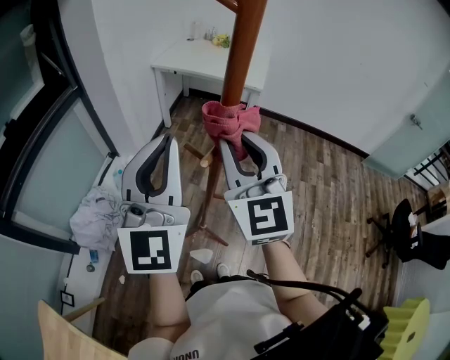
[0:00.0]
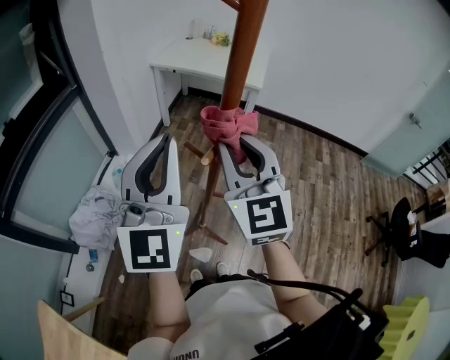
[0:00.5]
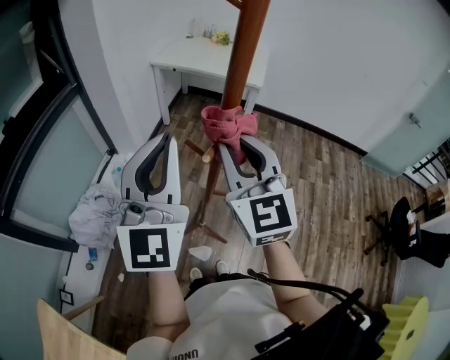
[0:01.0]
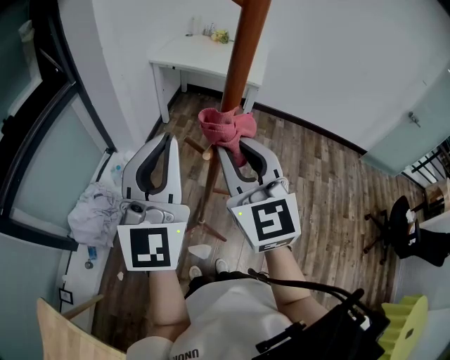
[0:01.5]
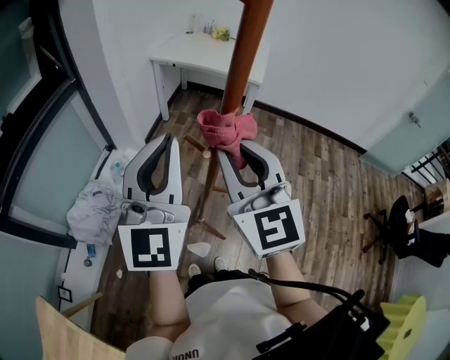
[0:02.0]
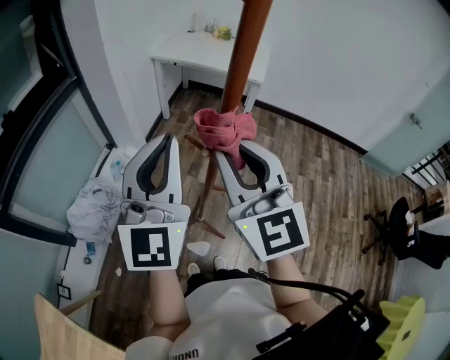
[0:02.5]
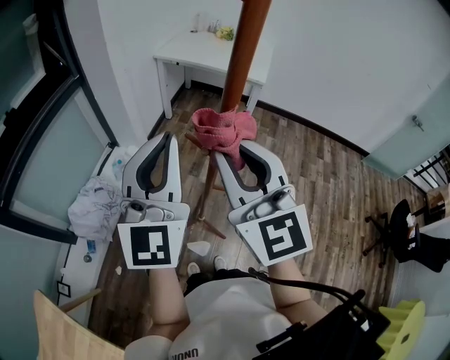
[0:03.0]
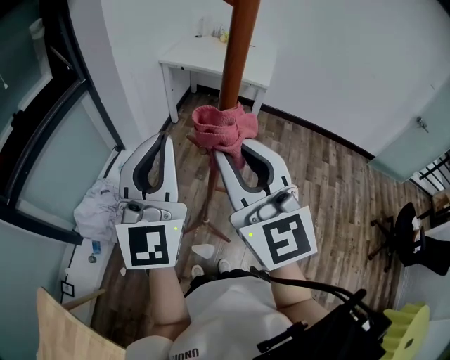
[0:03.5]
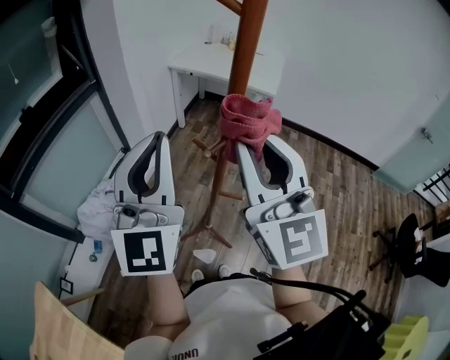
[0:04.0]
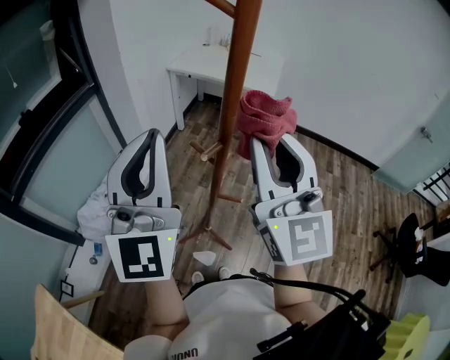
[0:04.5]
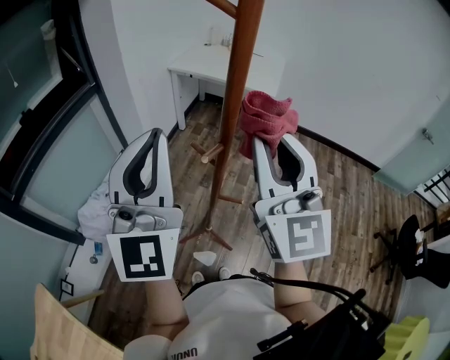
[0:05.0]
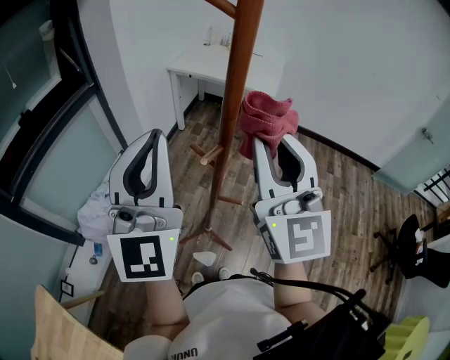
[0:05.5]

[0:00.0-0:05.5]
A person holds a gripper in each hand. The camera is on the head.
0:00.0 to 0:02.0: The grippers make only small movements.
0:02.0 to 0:03.5: The right gripper shifts by approximately 5 cm.
0:03.5 to 0:05.5: The right gripper is displaced to the right by some 5 cm.

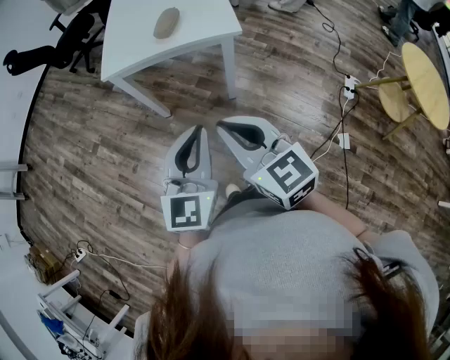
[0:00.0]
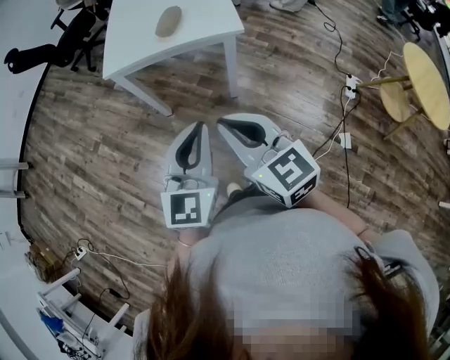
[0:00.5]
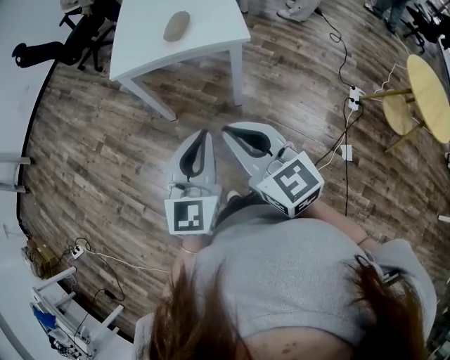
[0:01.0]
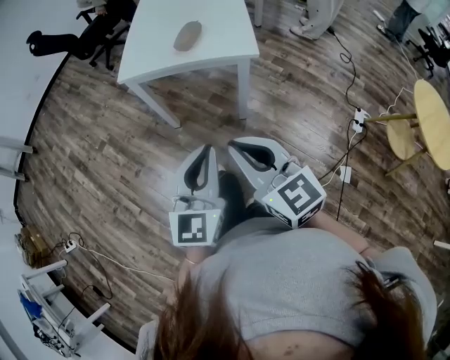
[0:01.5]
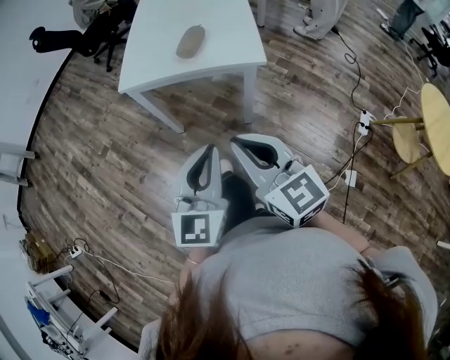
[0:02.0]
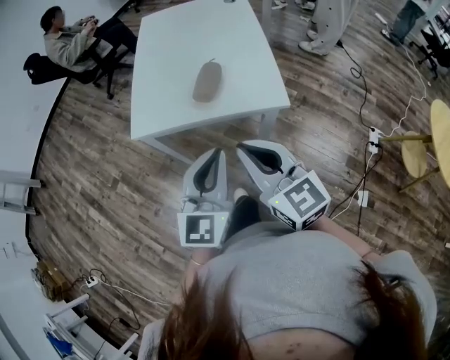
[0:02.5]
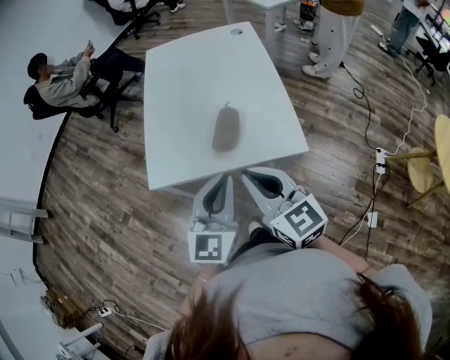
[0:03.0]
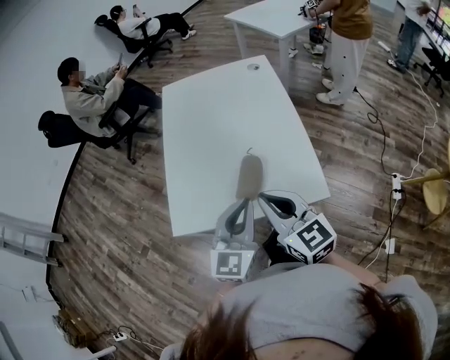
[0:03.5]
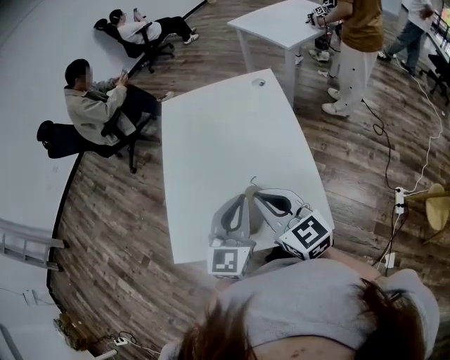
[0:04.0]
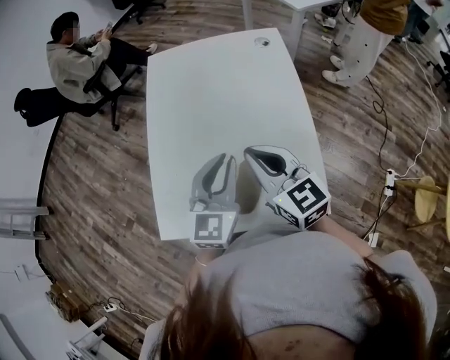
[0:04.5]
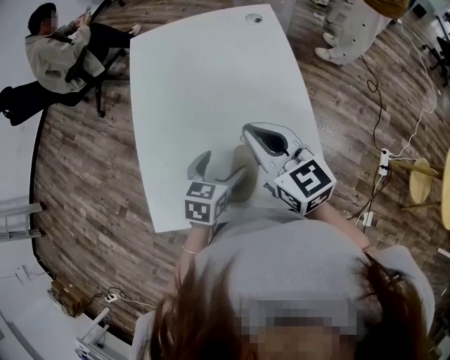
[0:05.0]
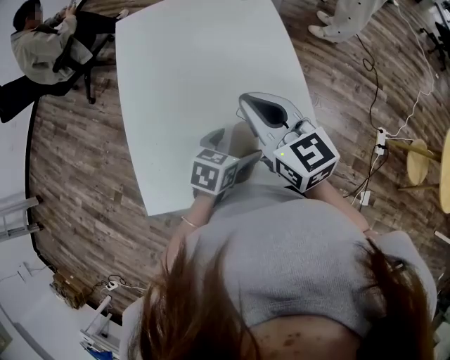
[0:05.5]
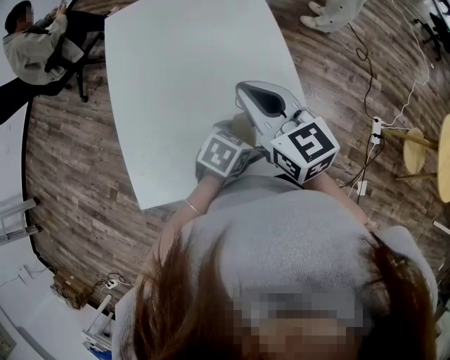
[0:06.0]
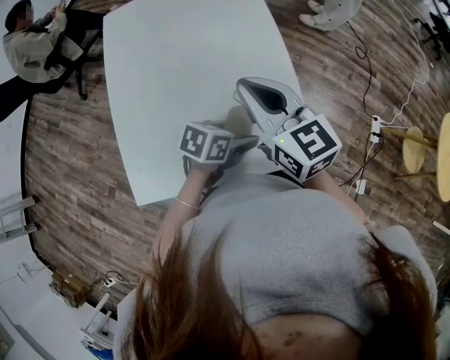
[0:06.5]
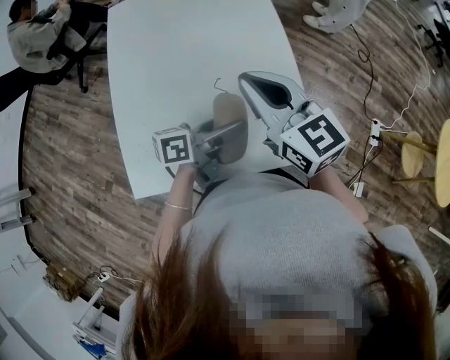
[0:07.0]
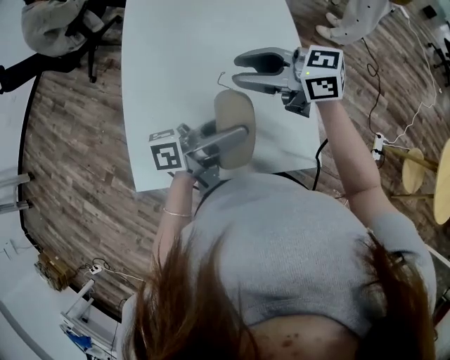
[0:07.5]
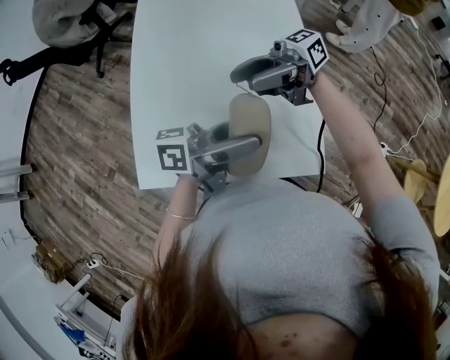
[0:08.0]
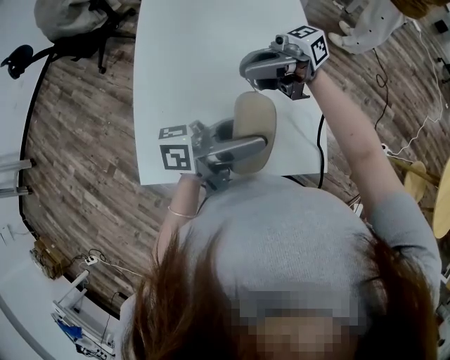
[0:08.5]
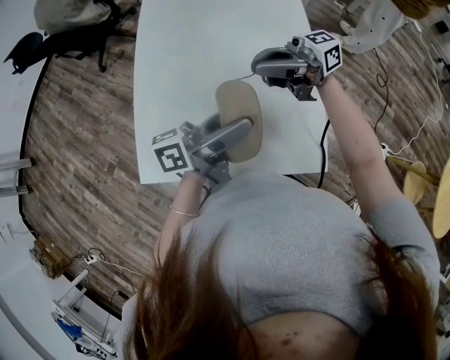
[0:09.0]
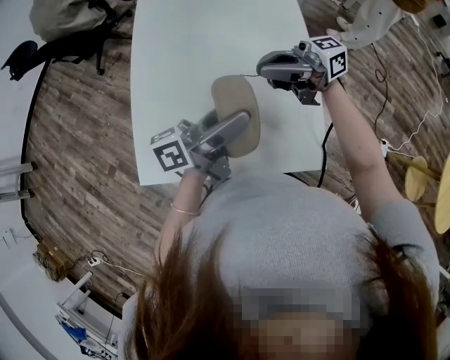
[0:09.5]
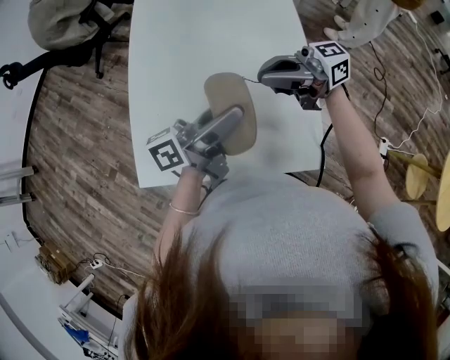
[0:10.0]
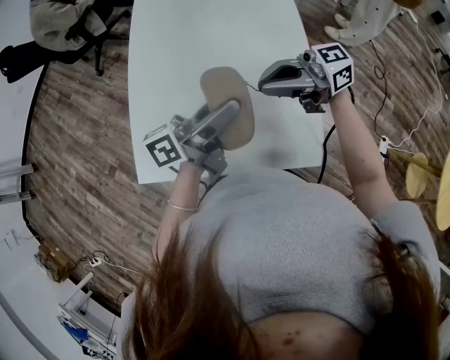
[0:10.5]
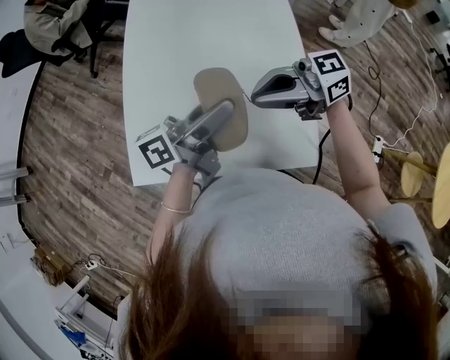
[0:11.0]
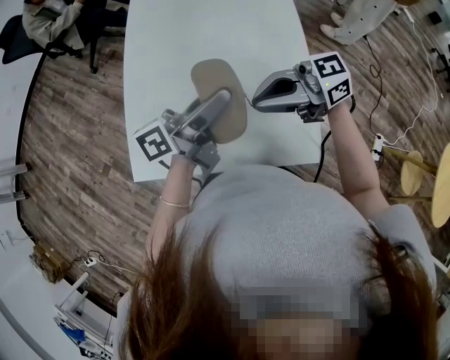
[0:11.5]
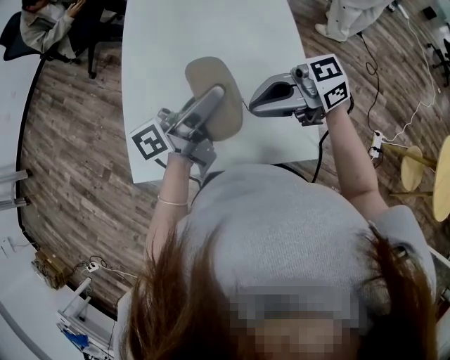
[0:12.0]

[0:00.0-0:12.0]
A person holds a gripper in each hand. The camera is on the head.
0:00.0 to 0:02.0: The right gripper goes roughly 5 cm forward.
0:02.0 to 0:04.0: The pair of grippers is taken forward, roughly 40 cm.
0:04.0 to 0:06.0: The right gripper changes place by approximately 10 cm; the left gripper travels downward by approximately 20 cm, tilts its fingers roughly 40 degrees downward, and opens up.
0:06.0 to 0:08.0: The right gripper points its fingers approximately 40 degrees further upward, and opens its fingers. Meanwhile the left gripper heads upward, covering about 20 cm, and points its fingers some 60 degrees further upward.
0:08.0 to 0:10.0: The left gripper ends up roughly 5 cm from where it was; the right gripper closes its fingers.
0:10.0 to 0:12.0: The right gripper shifts by roughly 10 cm.

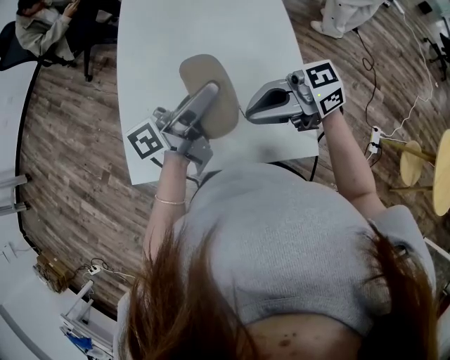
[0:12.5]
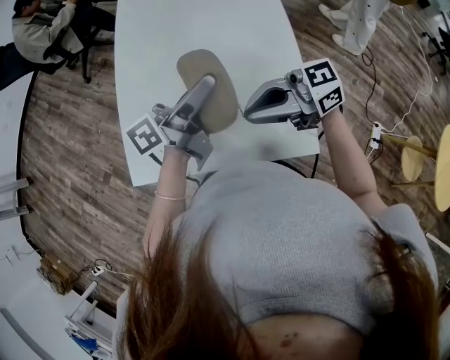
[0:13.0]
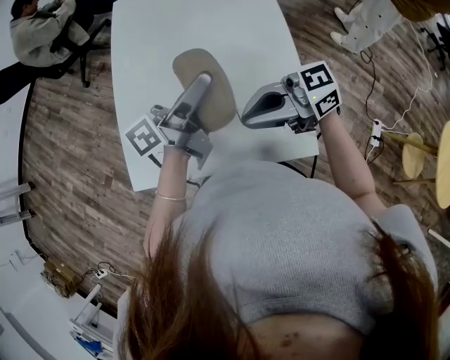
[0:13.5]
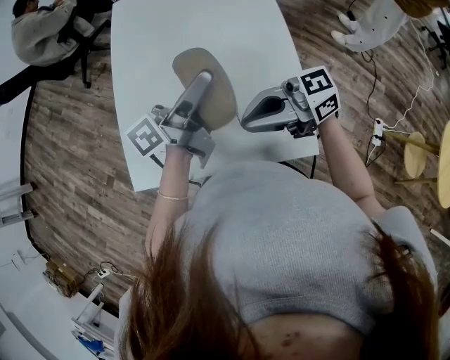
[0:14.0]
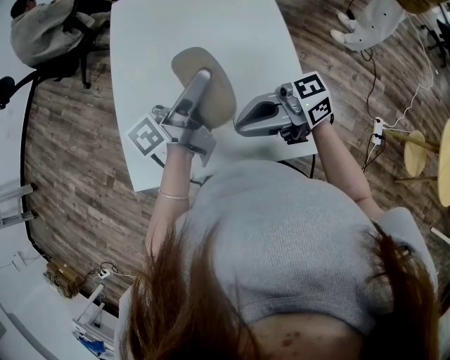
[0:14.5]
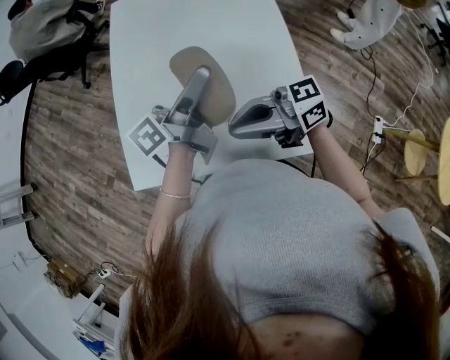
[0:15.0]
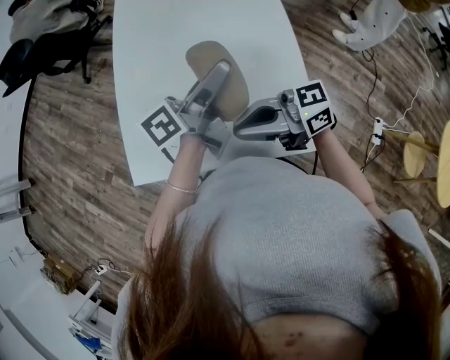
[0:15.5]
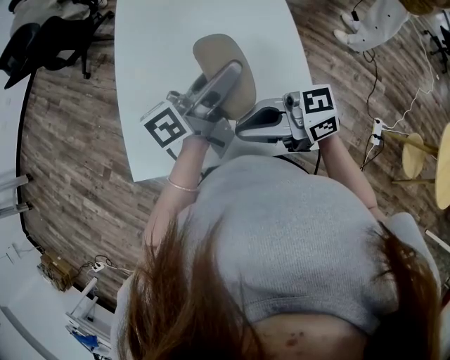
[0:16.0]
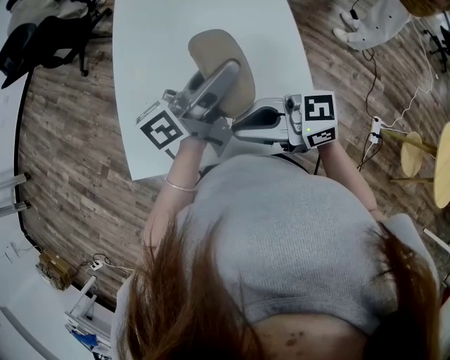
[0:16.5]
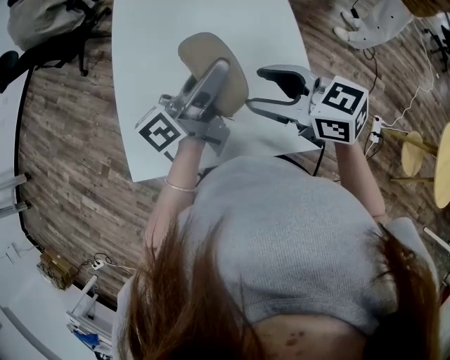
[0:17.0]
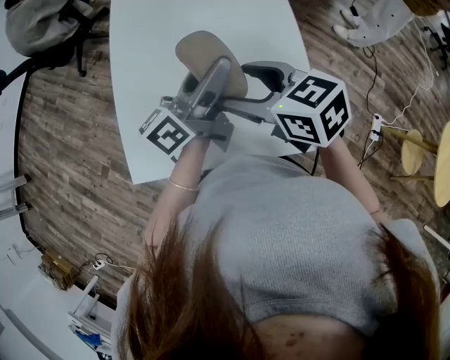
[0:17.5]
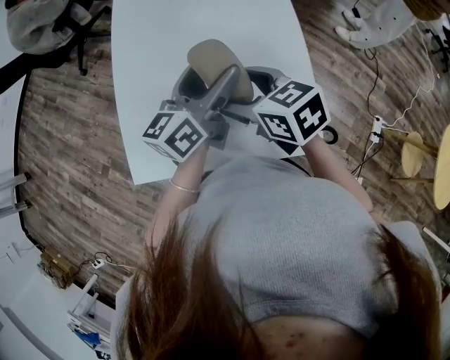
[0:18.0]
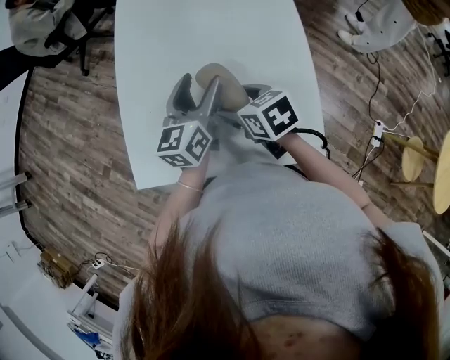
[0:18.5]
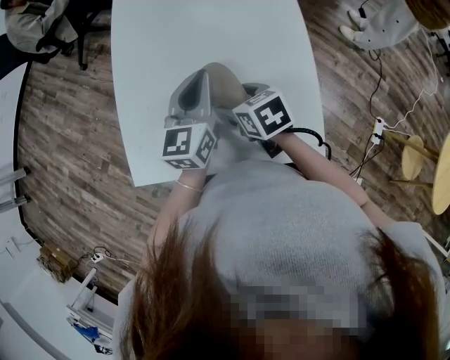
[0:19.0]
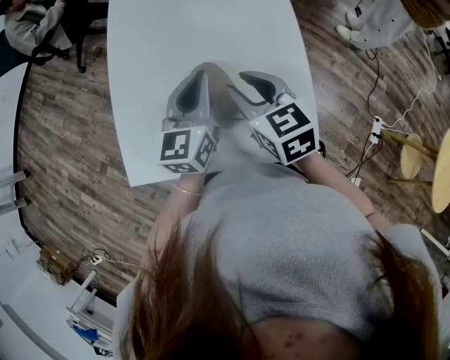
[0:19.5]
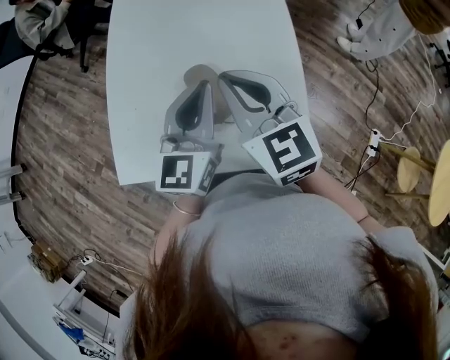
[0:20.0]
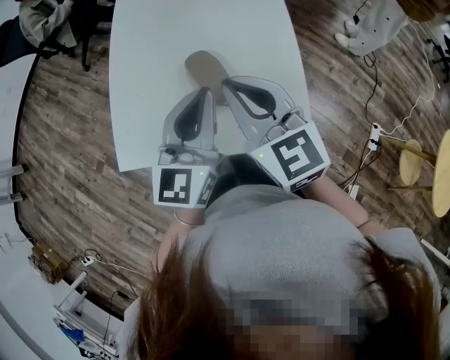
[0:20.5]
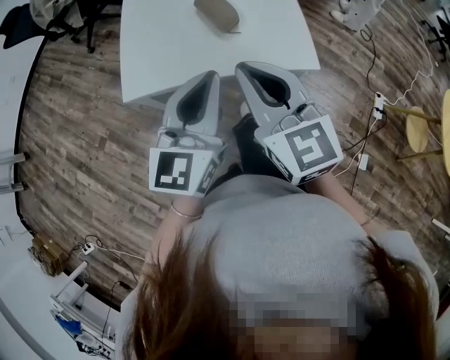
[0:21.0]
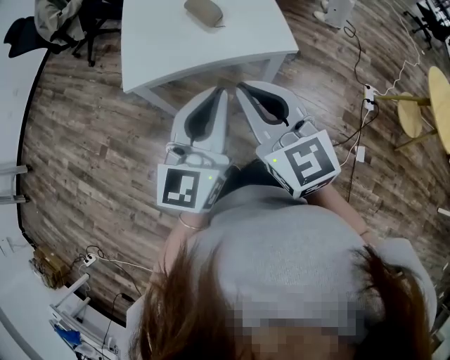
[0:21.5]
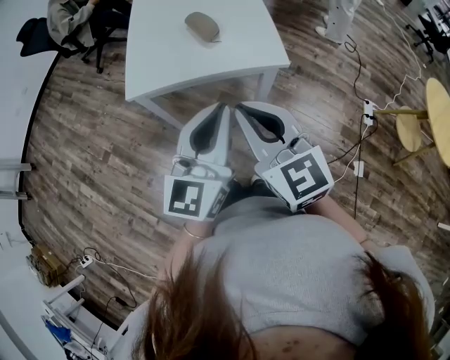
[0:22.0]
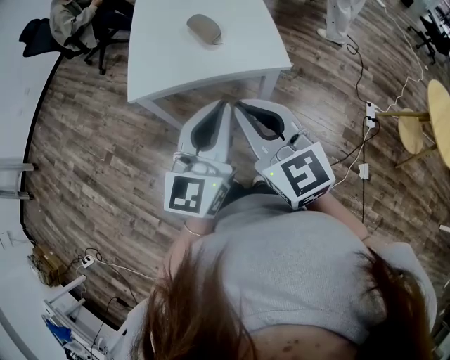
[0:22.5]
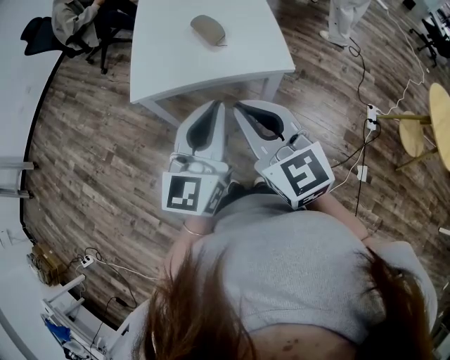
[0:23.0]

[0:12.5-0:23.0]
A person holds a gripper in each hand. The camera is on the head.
0:12.5 to 0:16.5: The grippers make only small movements.
0:16.5 to 0:19.0: The right gripper is displaced downward by roughly 15 cm, tilts its fingers roughly 50 degrees downward, and opens its fingers, while the left gripper travels downward by some 10 cm, swivels about 60 degrees, and closes its fingers.
0:19.0 to 0:21.0: The left gripper moves backward, some 30 cm. The right gripper goes about 30 cm backward and upward, tilts its fingers some 40 degrees upward, and closes.
0:21.0 to 0:23.0: The two grippers go some 15 cm backward.
